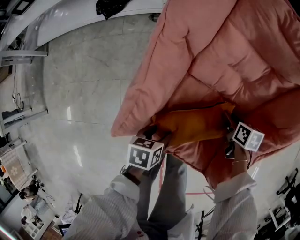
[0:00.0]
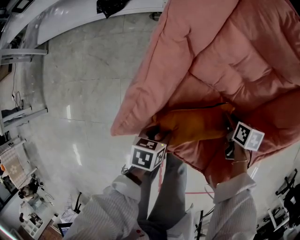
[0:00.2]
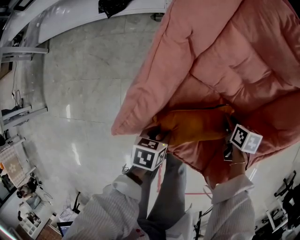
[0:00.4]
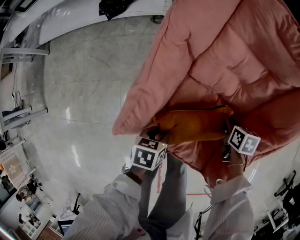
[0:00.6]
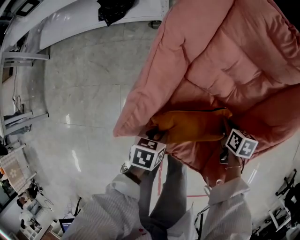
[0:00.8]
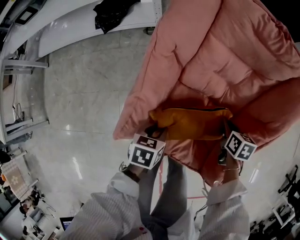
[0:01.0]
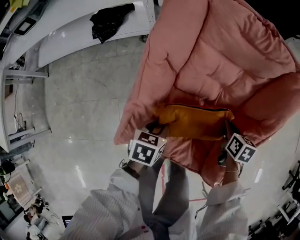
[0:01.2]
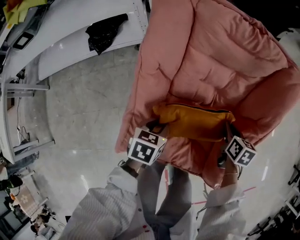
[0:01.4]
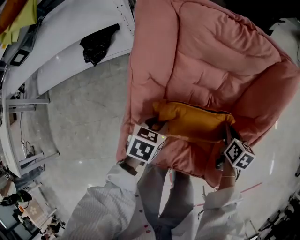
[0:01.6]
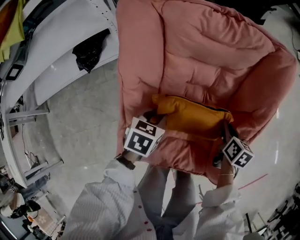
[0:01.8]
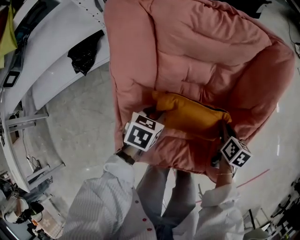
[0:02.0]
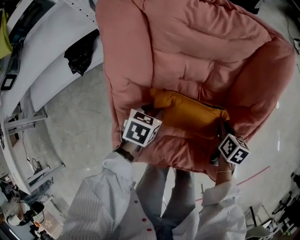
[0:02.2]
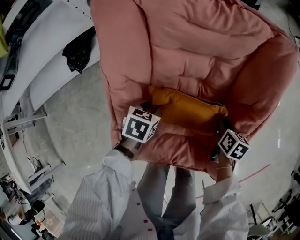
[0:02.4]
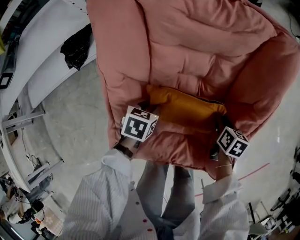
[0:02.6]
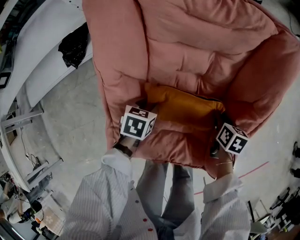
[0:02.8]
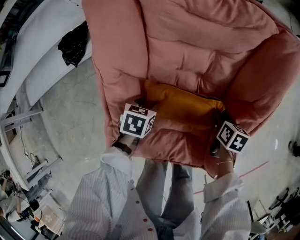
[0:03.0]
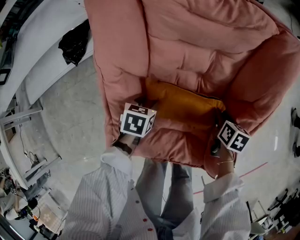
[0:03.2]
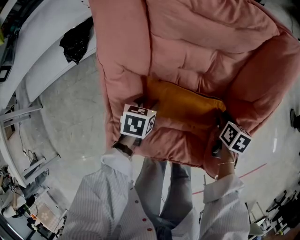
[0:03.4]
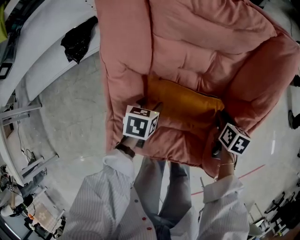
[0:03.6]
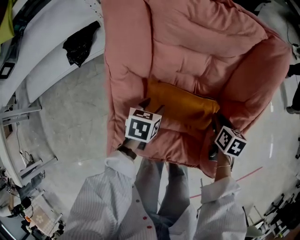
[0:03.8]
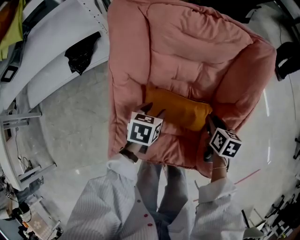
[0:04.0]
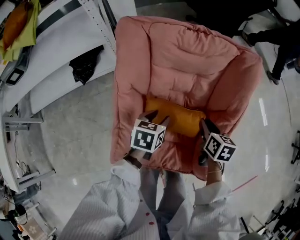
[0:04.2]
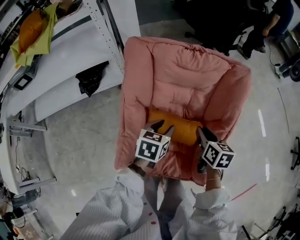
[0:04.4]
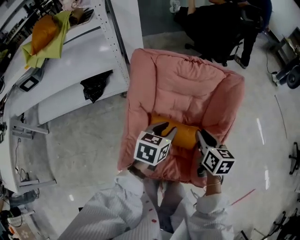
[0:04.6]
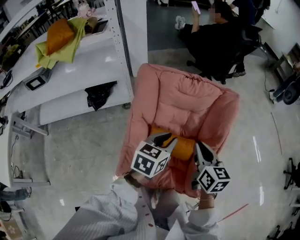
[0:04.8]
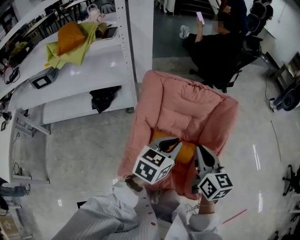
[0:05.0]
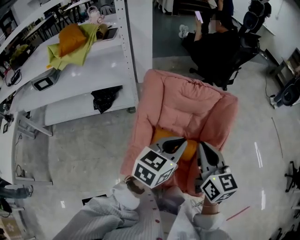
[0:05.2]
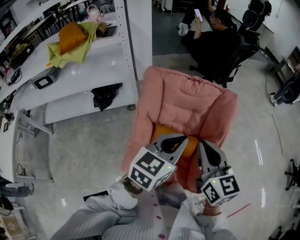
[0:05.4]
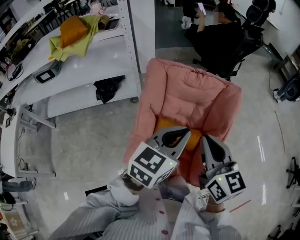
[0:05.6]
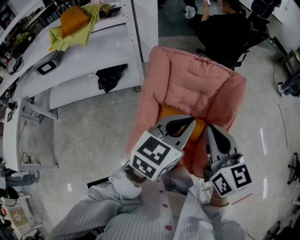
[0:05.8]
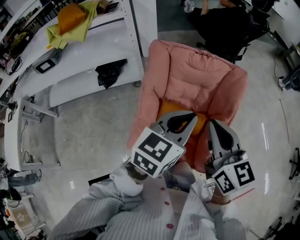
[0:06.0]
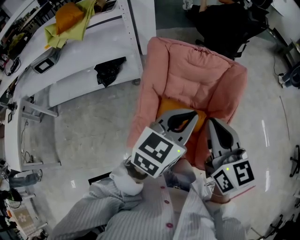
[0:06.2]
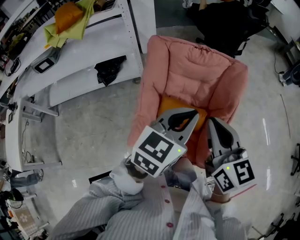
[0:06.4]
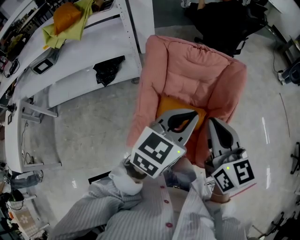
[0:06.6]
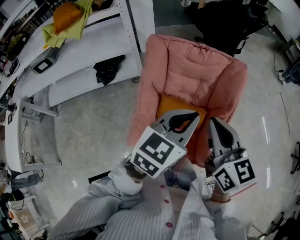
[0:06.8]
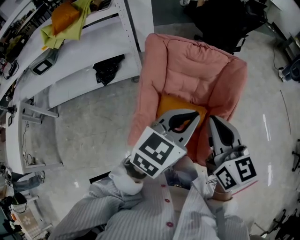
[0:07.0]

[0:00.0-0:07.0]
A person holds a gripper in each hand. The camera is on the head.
0:00.0 to 0:01.4: The left gripper is displaced forward and upward by about 15 cm, turns by approximately 30 degrees, and closes up. Meanwhile the right gripper goes about 10 cm upward, changes its angle by some 20 degrees, and closes up.
0:01.4 to 0:02.8: The right gripper goes about 10 cm downward and to the right, while the left gripper travels forward and downward by about 10 cm.
0:02.8 to 0:04.2: Both grippers move upward, some 15 cm.
0:04.2 to 0:05.6: Both grippers travel together upward, some 35 cm. The right gripper angles its fingers upward, by approximately 30 degrees, while the left gripper tips its fingers upward by about 30 degrees, and closes.
0:05.6 to 0:07.0: There are only small adjustments of the grippers.

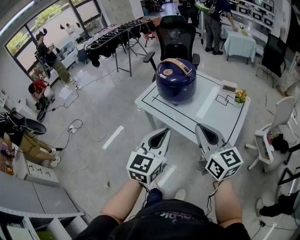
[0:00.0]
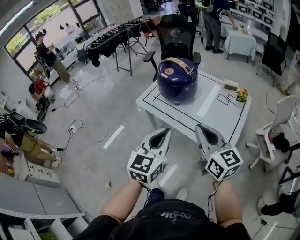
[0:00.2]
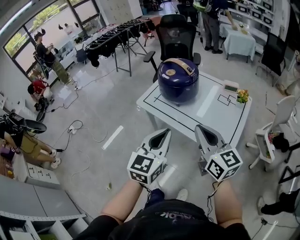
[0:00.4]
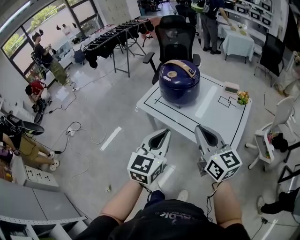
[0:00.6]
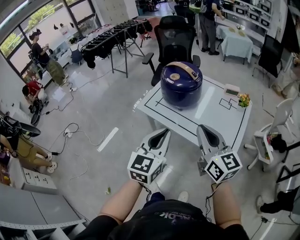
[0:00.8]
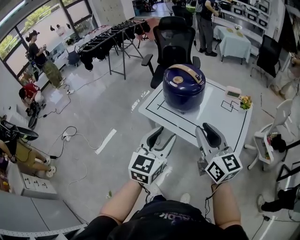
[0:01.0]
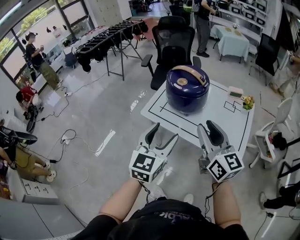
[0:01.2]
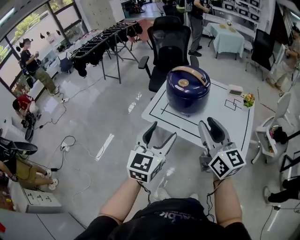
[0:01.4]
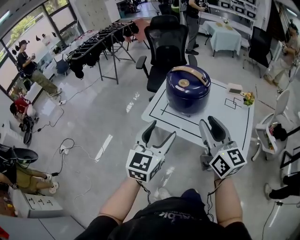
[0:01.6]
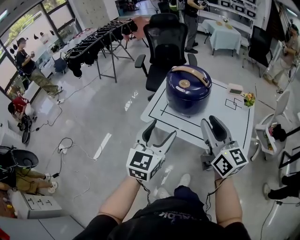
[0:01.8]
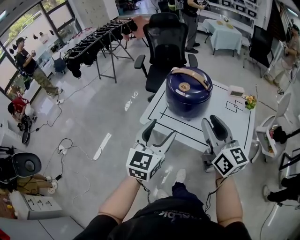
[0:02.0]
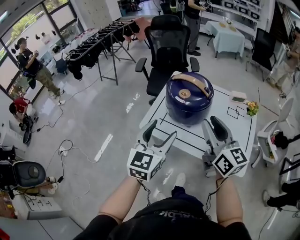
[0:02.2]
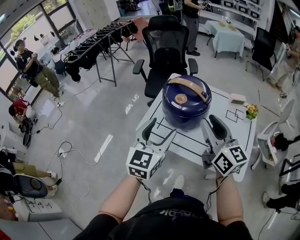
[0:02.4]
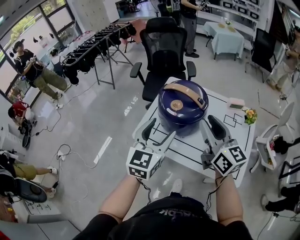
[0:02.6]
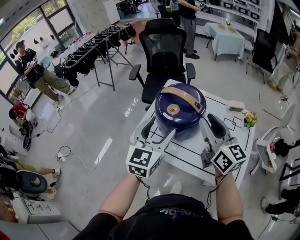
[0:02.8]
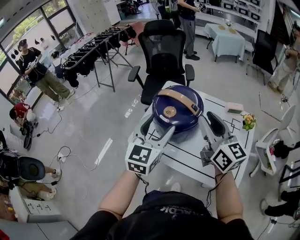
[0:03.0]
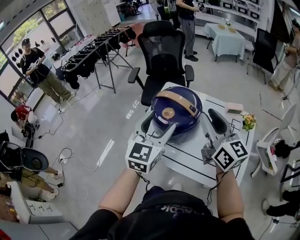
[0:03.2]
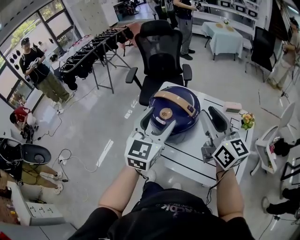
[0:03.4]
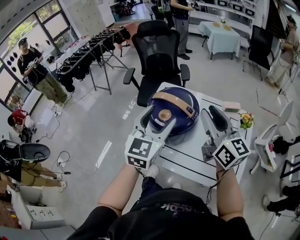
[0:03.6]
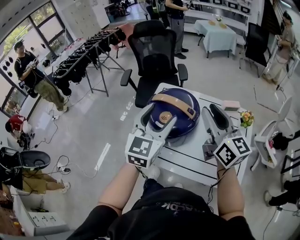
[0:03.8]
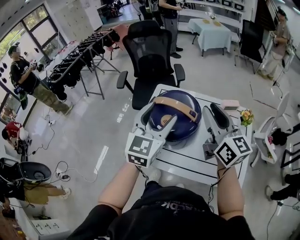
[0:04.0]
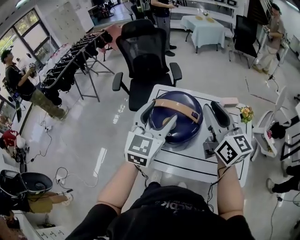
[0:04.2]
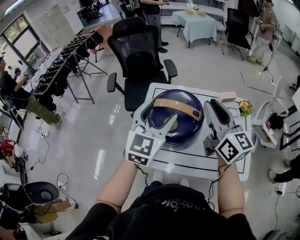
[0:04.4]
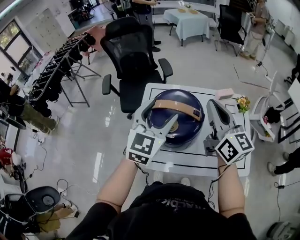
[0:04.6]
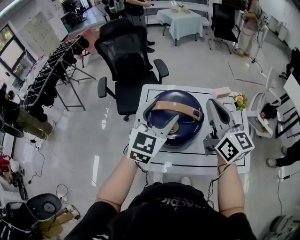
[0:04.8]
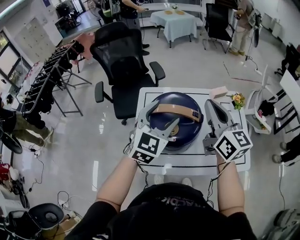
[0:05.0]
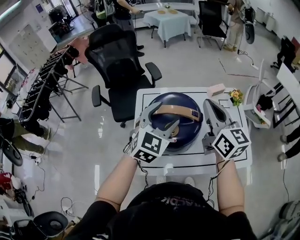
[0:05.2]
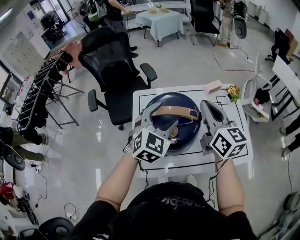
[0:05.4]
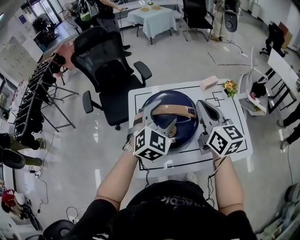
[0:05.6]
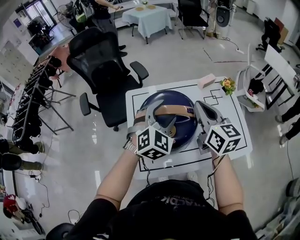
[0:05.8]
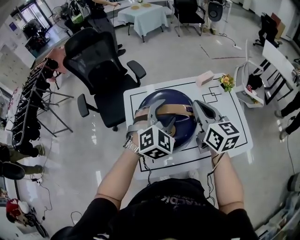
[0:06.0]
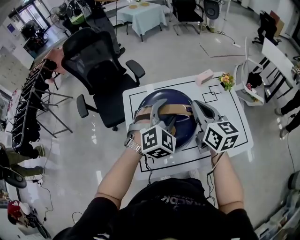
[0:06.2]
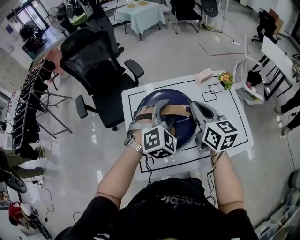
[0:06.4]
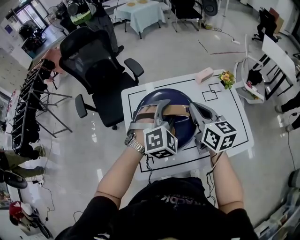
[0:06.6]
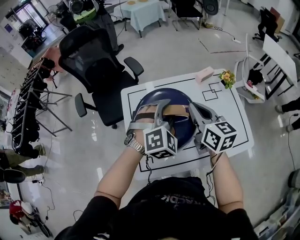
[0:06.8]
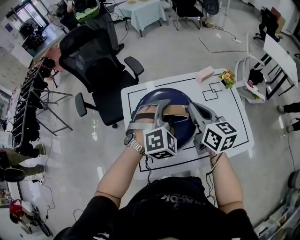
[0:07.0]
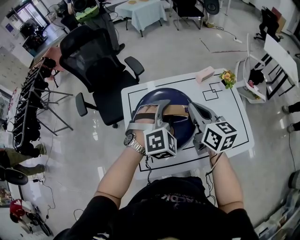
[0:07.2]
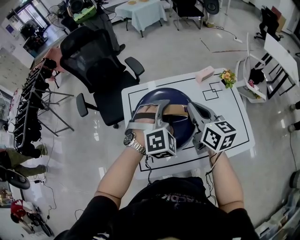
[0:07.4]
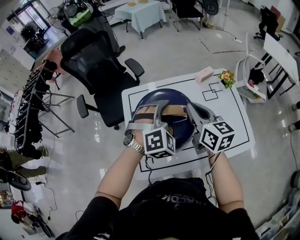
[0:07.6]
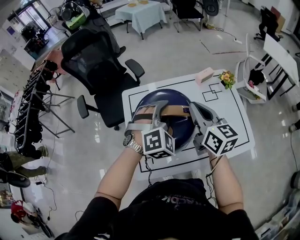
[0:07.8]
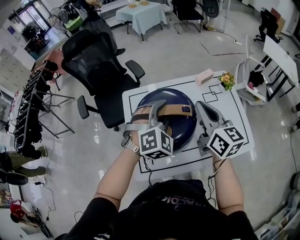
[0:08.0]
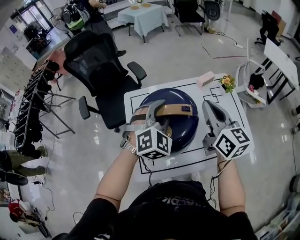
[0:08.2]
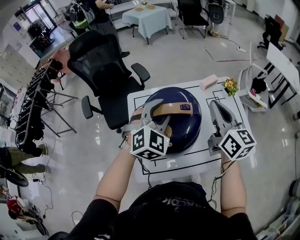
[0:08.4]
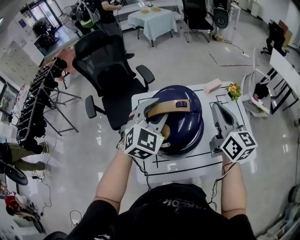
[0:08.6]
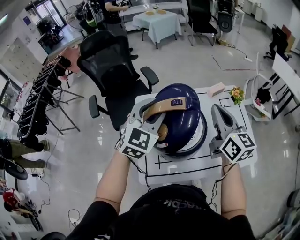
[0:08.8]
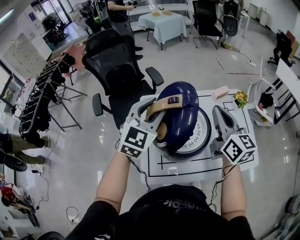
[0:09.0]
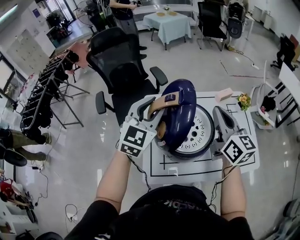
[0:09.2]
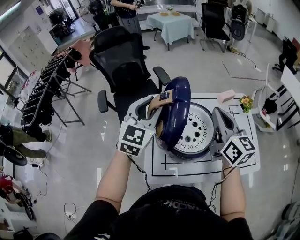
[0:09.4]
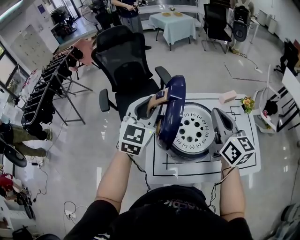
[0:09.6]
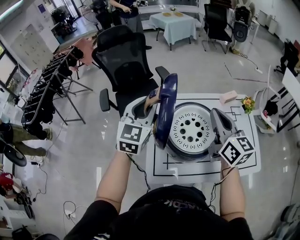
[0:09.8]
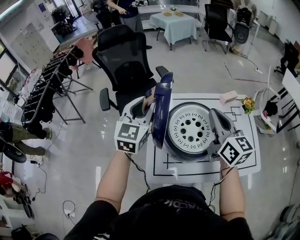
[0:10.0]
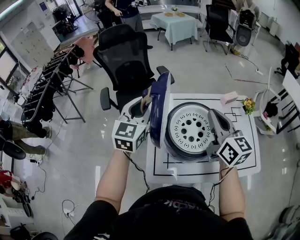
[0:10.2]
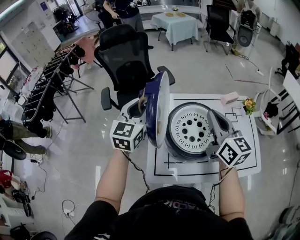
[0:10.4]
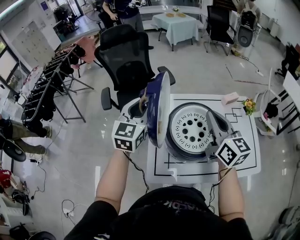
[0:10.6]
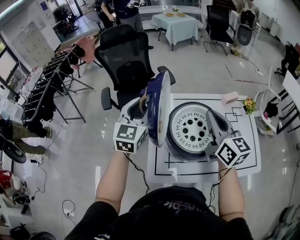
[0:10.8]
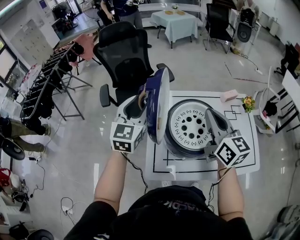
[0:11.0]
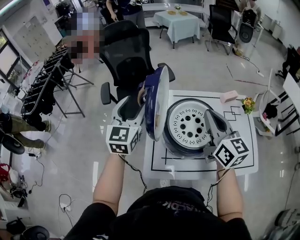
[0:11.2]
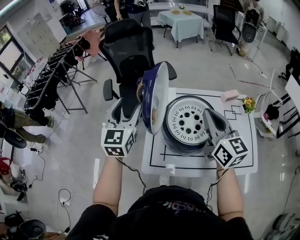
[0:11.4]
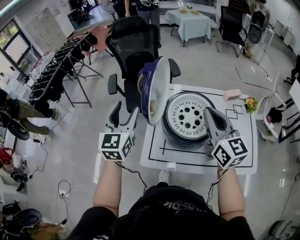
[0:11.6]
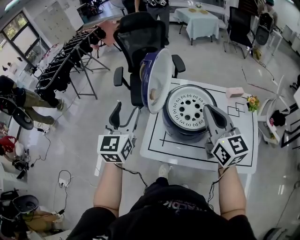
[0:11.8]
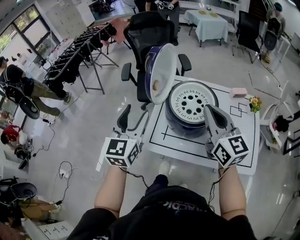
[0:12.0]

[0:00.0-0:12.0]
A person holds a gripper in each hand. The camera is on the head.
0:00.0 to 0:01.6: The two grippers go some 20 cm to the left and forward. The left gripper opens. Meanwhile the right gripper opens.
0:01.6 to 0:03.0: The two grippers go roughly 20 cm forward.
0:03.0 to 0:04.4: The two grippers go approximately 10 cm forward.
0:04.4 to 0:06.0: The right gripper goes approximately 10 cm downward, turns by roughly 20 degrees, and closes; the left gripper goes some 10 cm downward and forward, and swivels approximately 40 degrees.
0:06.0 to 0:07.6: The grippers move only a little.
0:07.6 to 0:09.0: The right gripper is displaced upward by approximately 10 cm. Meanwhile the left gripper is displaced to the left and upward by roughly 15 cm, and swivels approximately 40 degrees.
0:09.0 to 0:10.4: Both grippers move to the left, roughly 10 cm. The left gripper rotates approximately 20 degrees.
0:10.4 to 0:12.0: The right gripper shifts roughly 10 cm backward, while the left gripper heads backward, covering roughly 25 cm, changes its angle by approximately 20 degrees, and opens its fingers.

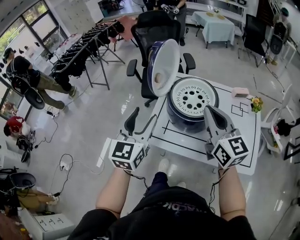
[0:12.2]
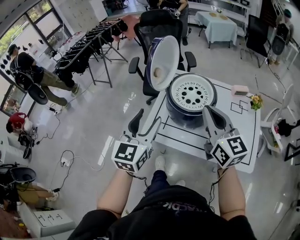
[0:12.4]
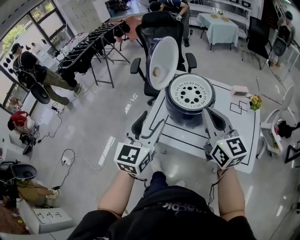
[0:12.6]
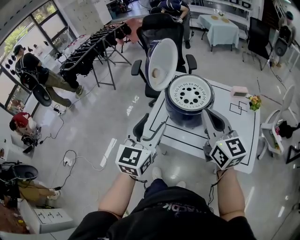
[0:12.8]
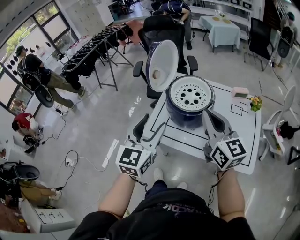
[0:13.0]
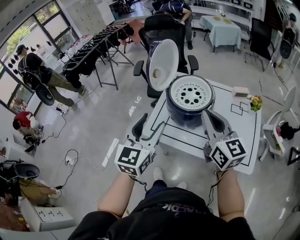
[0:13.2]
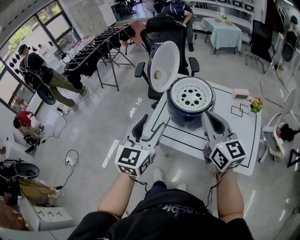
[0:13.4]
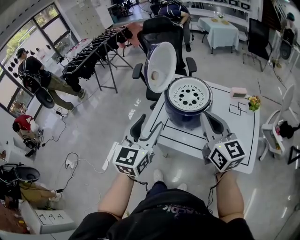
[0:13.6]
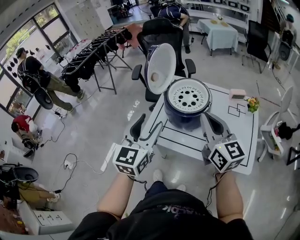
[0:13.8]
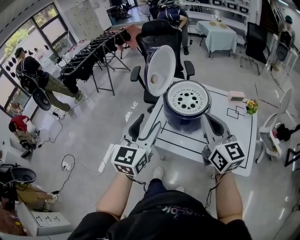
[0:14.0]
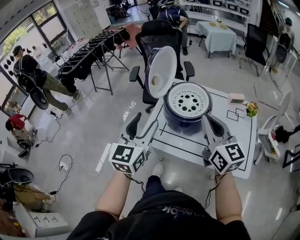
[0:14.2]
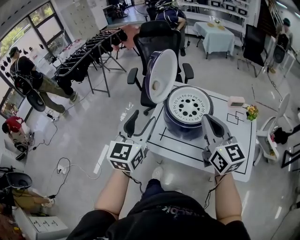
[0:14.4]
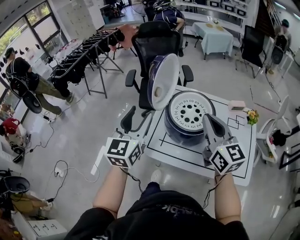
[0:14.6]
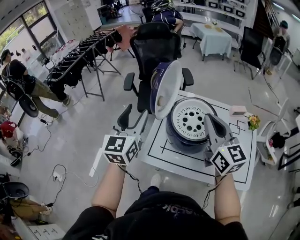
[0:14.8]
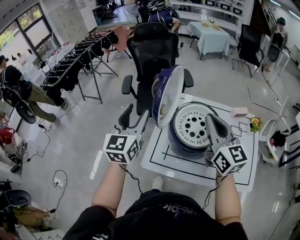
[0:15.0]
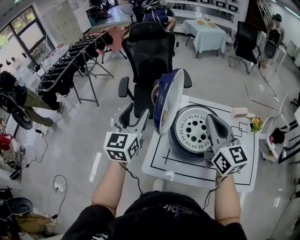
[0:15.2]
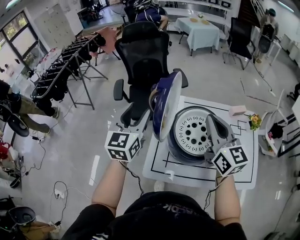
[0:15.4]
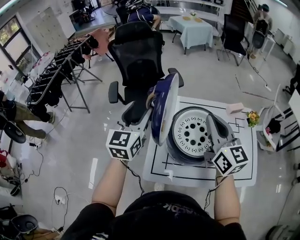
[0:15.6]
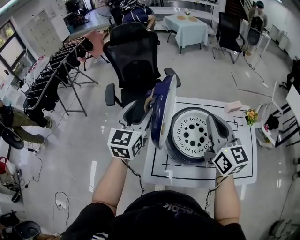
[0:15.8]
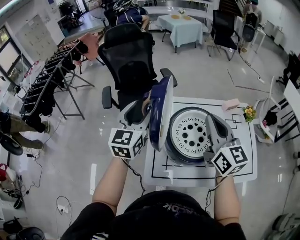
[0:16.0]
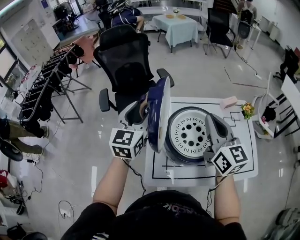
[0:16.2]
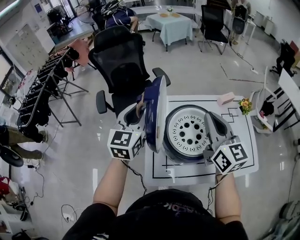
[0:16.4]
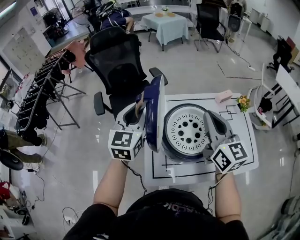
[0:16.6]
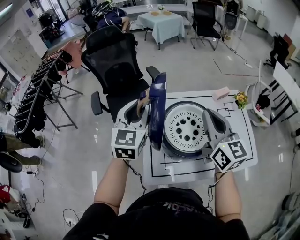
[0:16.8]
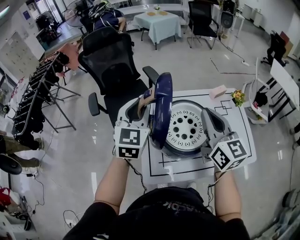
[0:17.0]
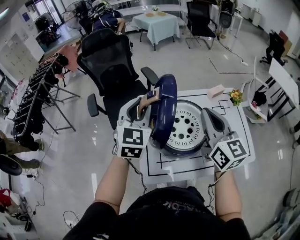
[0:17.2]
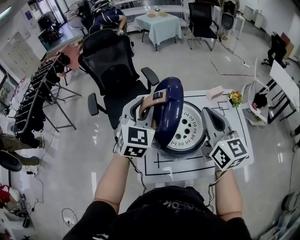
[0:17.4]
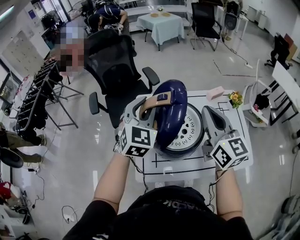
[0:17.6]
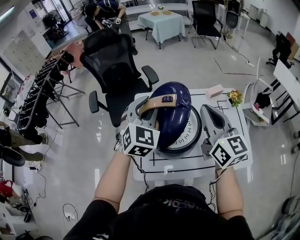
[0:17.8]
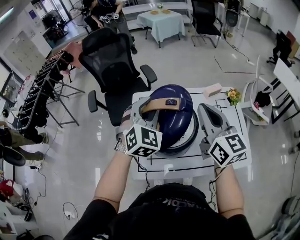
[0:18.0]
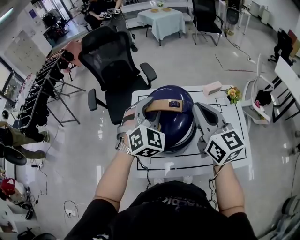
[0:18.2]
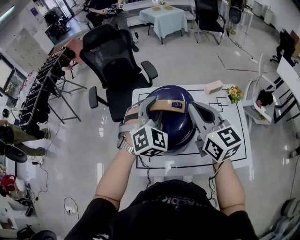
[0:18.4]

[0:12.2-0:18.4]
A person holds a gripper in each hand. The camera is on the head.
0:12.2 to 0:13.8: The left gripper goes some 10 cm backward and to the right; the right gripper travels backward by about 5 cm.
0:13.8 to 0:15.4: Both grippers move forward, some 25 cm.
0:15.4 to 0:16.8: The left gripper moves to the right and forward, roughly 10 cm, and closes up.
0:16.8 to 0:18.4: The left gripper is displaced to the right by about 15 cm, and twists some 40 degrees clockwise, seen from behind. Meanwhile the right gripper moves to the right, about 5 cm.
